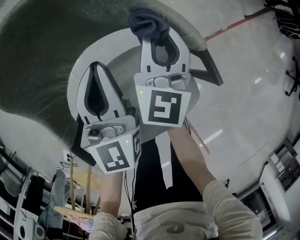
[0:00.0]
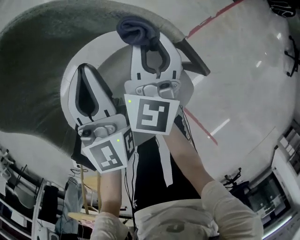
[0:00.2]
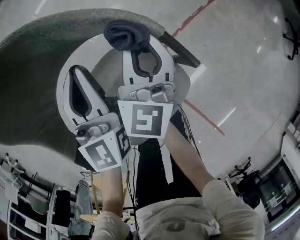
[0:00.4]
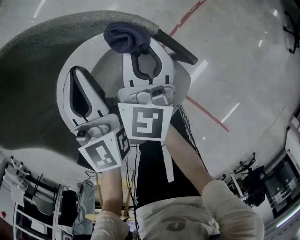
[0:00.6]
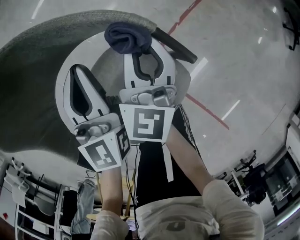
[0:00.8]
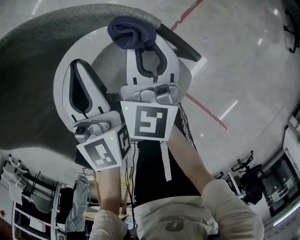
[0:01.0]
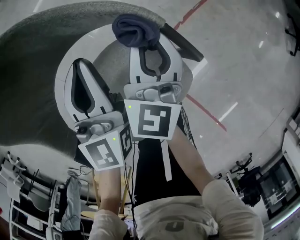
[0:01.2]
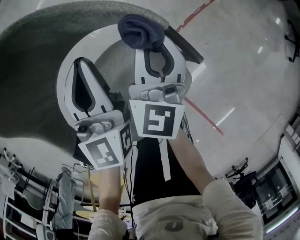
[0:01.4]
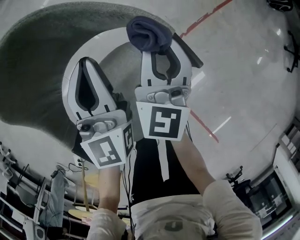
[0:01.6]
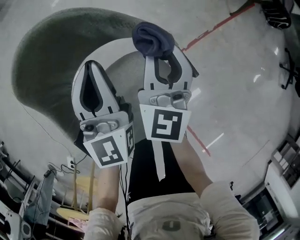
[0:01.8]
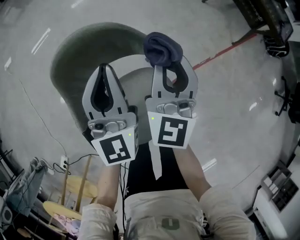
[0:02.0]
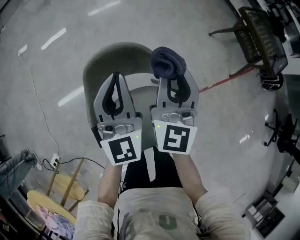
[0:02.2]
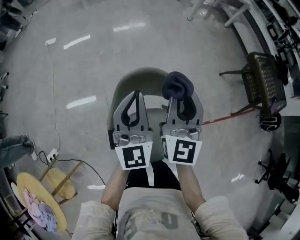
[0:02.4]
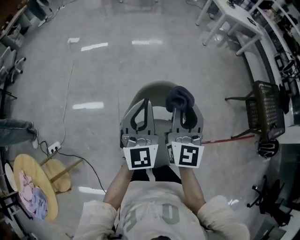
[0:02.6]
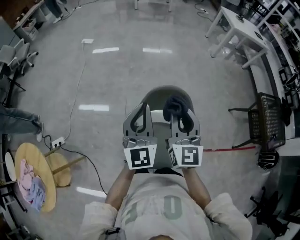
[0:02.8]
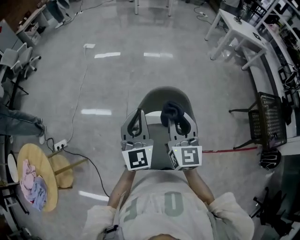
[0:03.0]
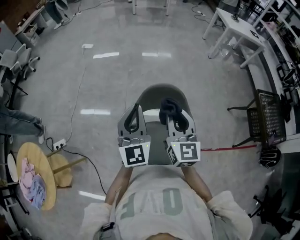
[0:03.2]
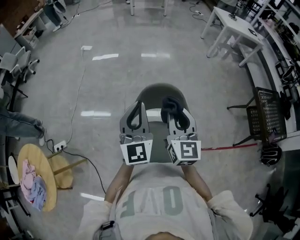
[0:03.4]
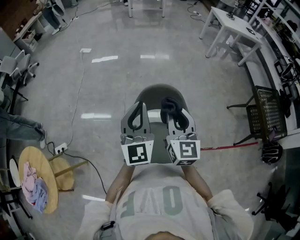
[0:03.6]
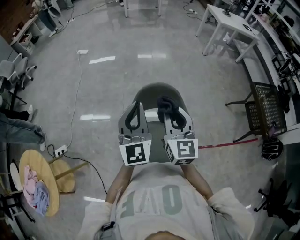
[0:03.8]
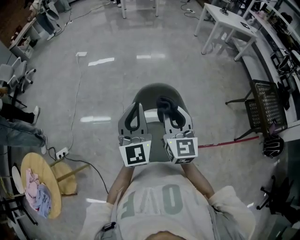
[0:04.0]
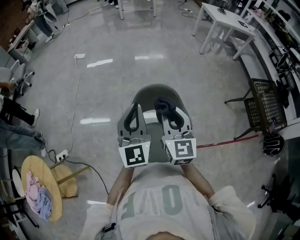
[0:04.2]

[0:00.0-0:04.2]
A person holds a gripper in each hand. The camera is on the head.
0:00.0 to 0:01.4: Both grippers travel together to the right, about 10 cm.
0:01.4 to 0:02.8: Both grippers travel together upward, some 40 cm. The left gripper turns by about 40 degrees. The right gripper turns by roughly 60 degrees.
0:02.8 to 0:04.2: The grippers make only small movements.

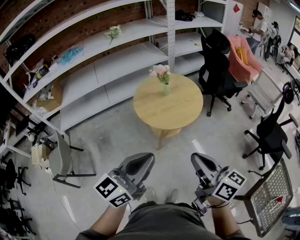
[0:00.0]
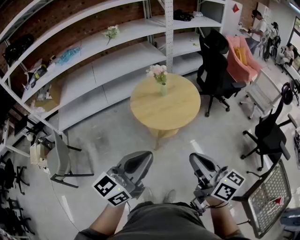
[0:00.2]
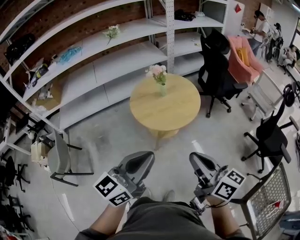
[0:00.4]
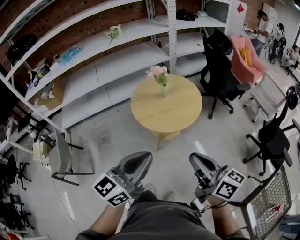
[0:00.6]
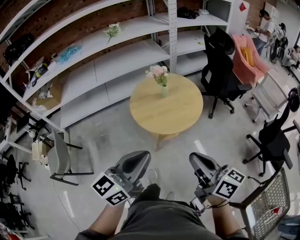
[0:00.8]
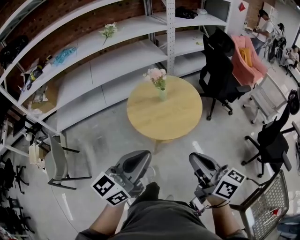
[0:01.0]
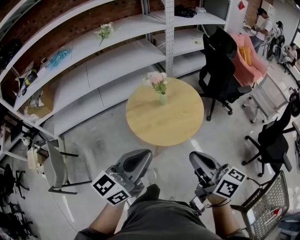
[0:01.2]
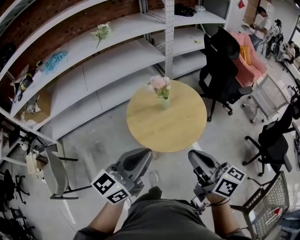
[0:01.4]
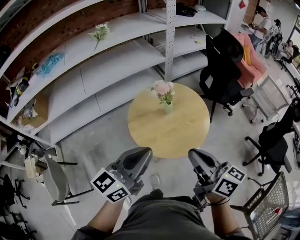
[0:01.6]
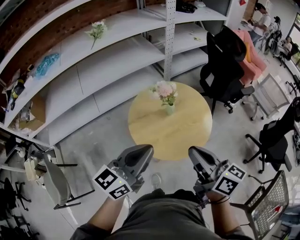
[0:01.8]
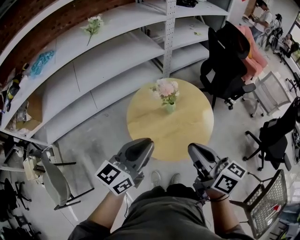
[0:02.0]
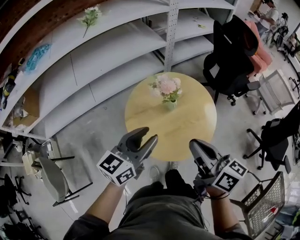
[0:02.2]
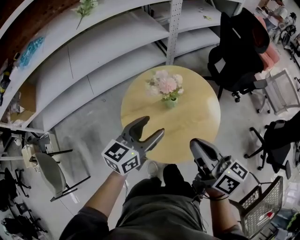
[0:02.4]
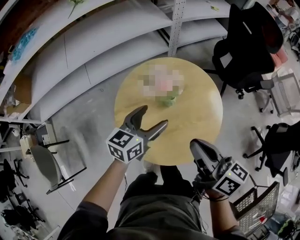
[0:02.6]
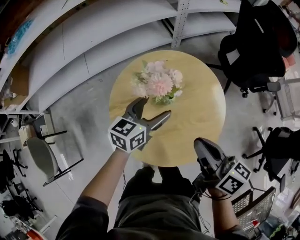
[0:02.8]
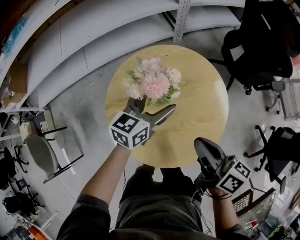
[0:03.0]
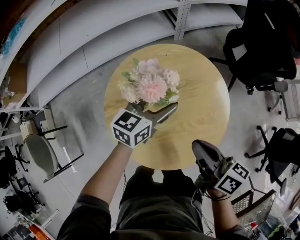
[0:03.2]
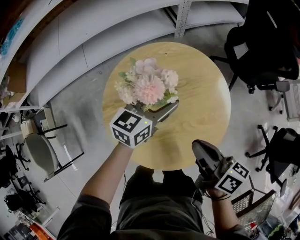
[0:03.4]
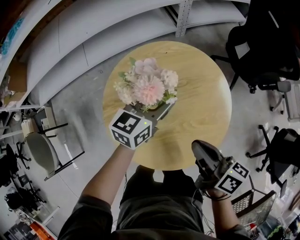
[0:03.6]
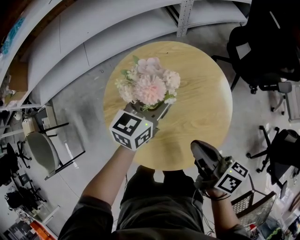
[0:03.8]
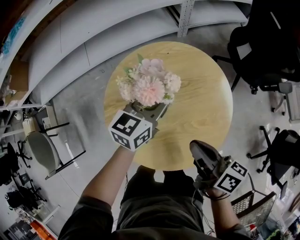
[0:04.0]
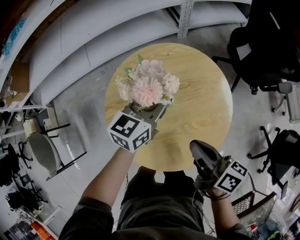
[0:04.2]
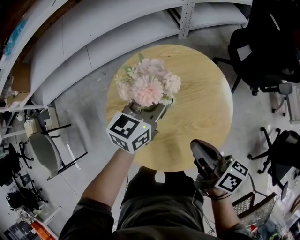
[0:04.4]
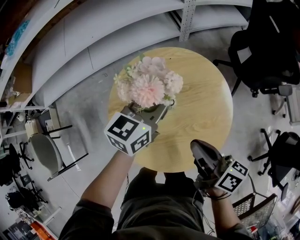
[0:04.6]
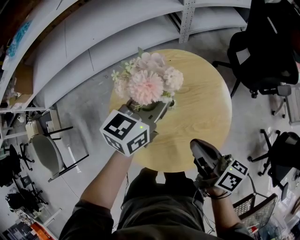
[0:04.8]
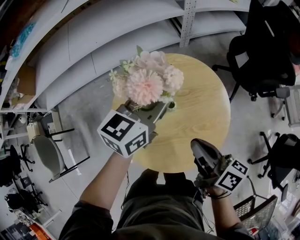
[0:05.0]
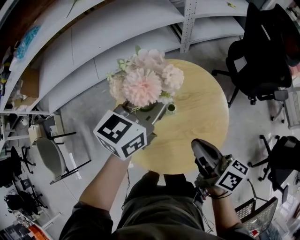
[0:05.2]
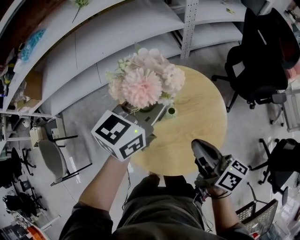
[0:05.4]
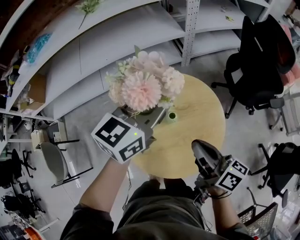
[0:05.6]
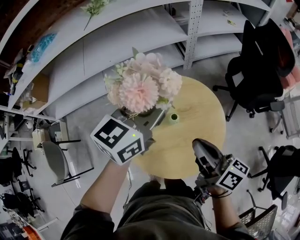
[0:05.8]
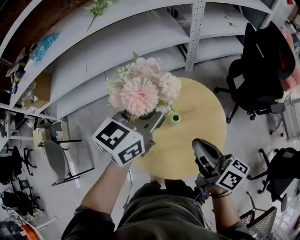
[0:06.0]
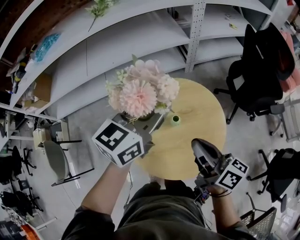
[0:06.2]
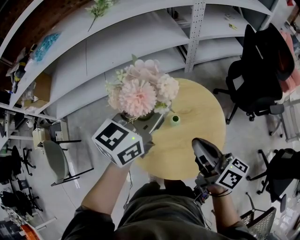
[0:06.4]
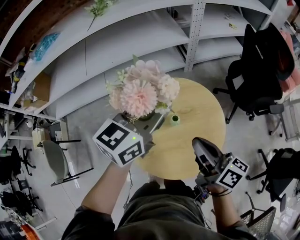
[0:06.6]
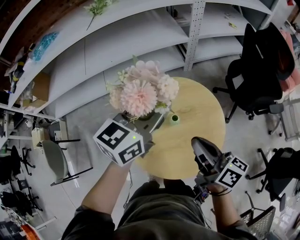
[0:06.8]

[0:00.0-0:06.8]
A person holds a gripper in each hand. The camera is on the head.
0:00.0 to 0:01.4: The grippers both shift forward by roughly 20 cm.
0:01.4 to 0:02.8: The left gripper shifts approximately 40 cm forward and downward, turns by about 20 degrees, and opens up. Meanwhile the right gripper shifts roughly 30 cm forward and downward.
0:02.8 to 0:04.0: The left gripper ends up about 5 cm from where it was, and closes. Meanwhile the right gripper goes approximately 5 cm downward.
0:04.0 to 0:05.4: The left gripper goes some 20 cm upward; the right gripper heads upward, covering about 10 cm.
0:05.4 to 0:06.8: The right gripper moves upward, some 5 cm. The left gripper moves approximately 5 cm.

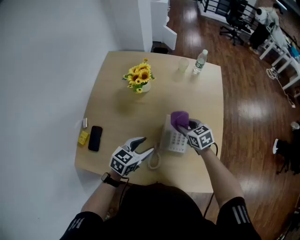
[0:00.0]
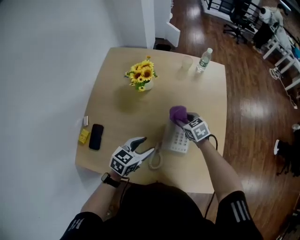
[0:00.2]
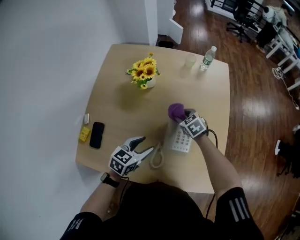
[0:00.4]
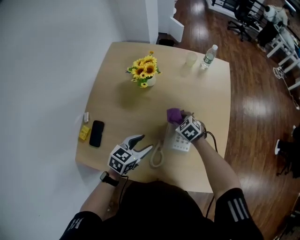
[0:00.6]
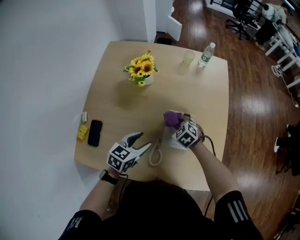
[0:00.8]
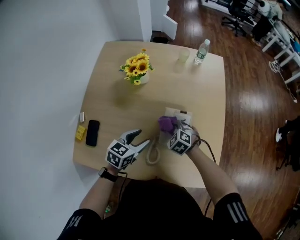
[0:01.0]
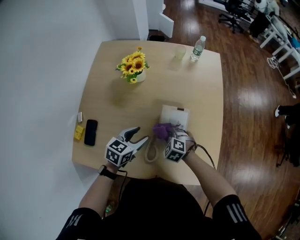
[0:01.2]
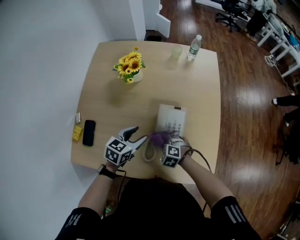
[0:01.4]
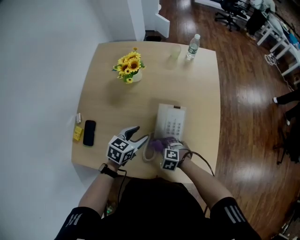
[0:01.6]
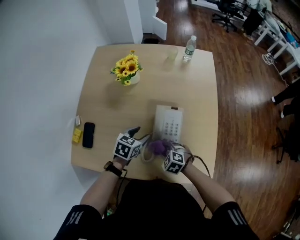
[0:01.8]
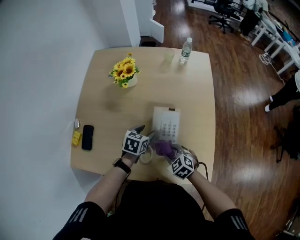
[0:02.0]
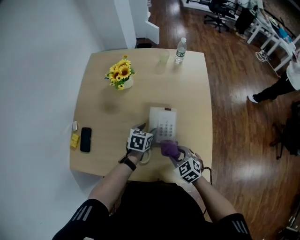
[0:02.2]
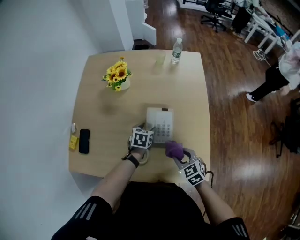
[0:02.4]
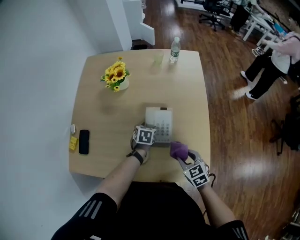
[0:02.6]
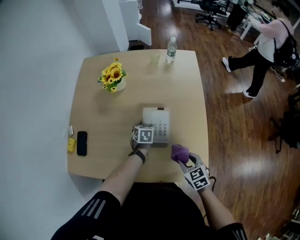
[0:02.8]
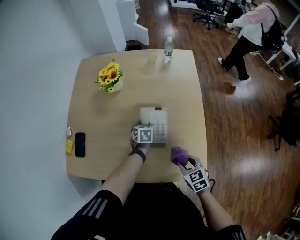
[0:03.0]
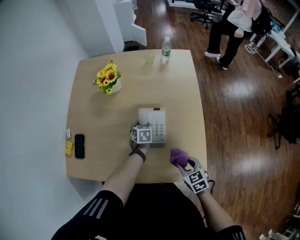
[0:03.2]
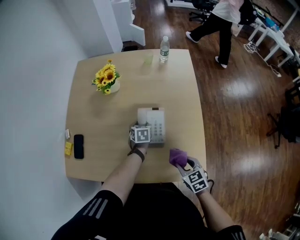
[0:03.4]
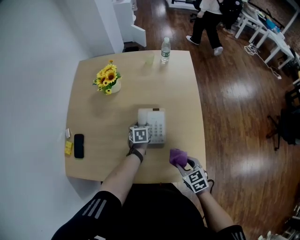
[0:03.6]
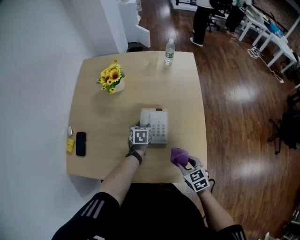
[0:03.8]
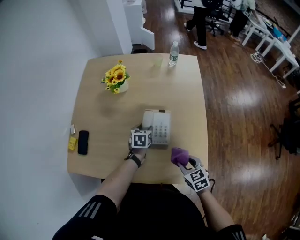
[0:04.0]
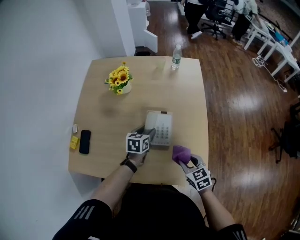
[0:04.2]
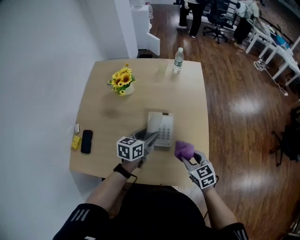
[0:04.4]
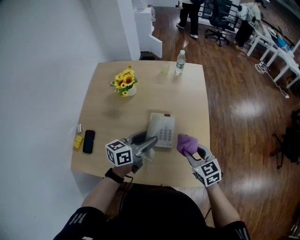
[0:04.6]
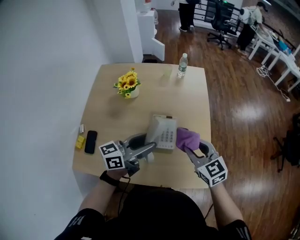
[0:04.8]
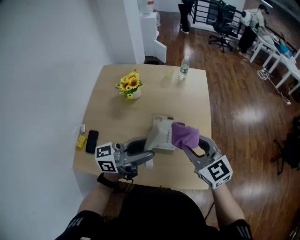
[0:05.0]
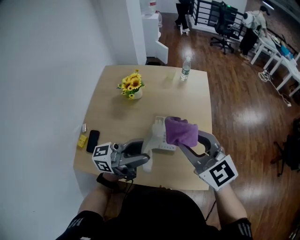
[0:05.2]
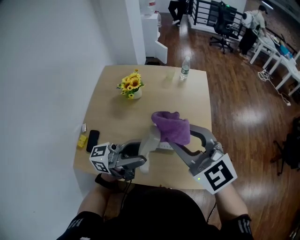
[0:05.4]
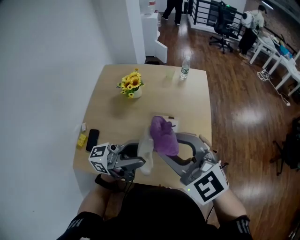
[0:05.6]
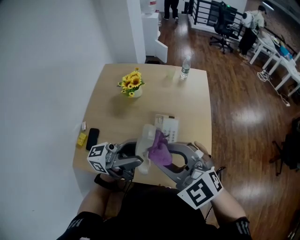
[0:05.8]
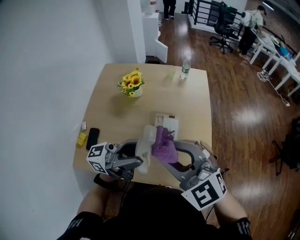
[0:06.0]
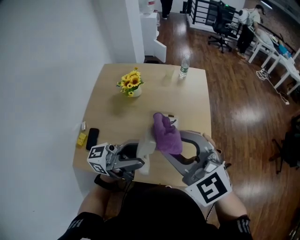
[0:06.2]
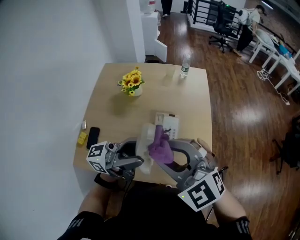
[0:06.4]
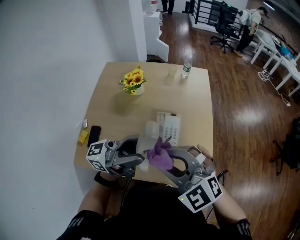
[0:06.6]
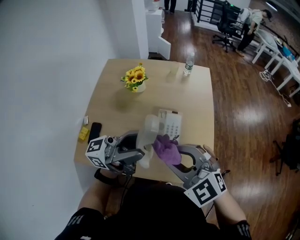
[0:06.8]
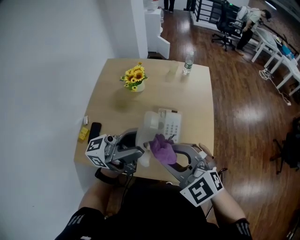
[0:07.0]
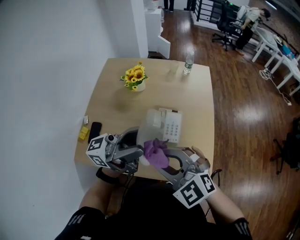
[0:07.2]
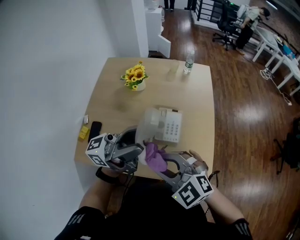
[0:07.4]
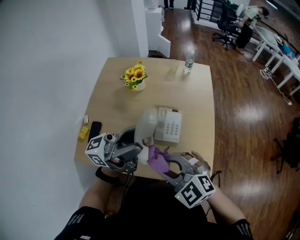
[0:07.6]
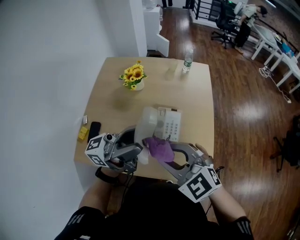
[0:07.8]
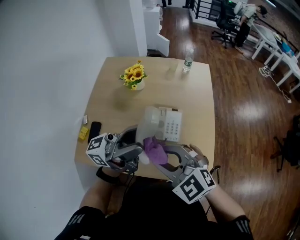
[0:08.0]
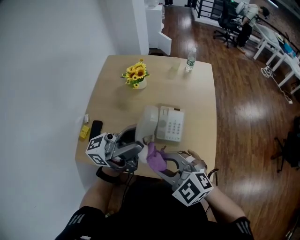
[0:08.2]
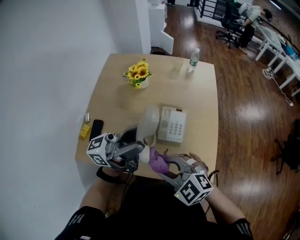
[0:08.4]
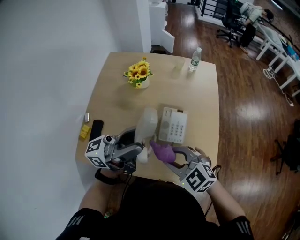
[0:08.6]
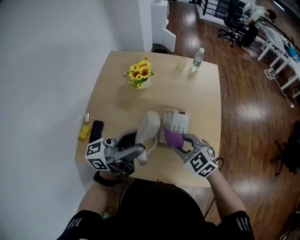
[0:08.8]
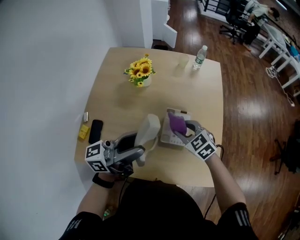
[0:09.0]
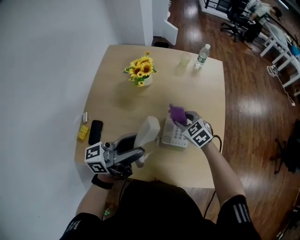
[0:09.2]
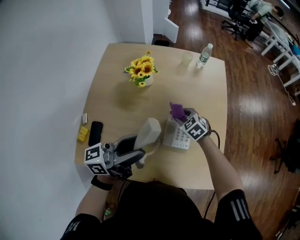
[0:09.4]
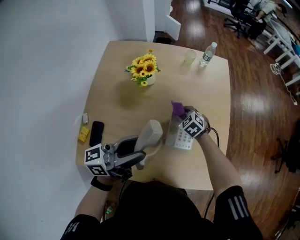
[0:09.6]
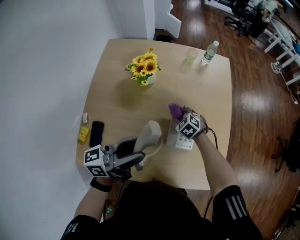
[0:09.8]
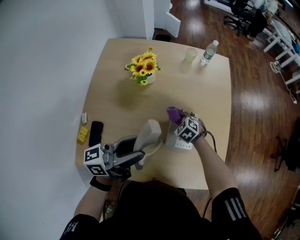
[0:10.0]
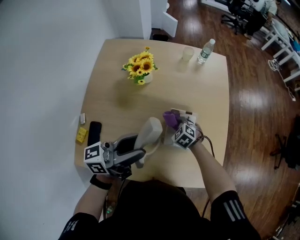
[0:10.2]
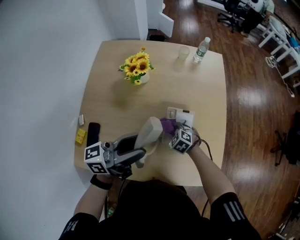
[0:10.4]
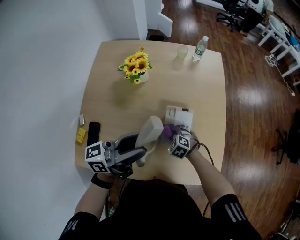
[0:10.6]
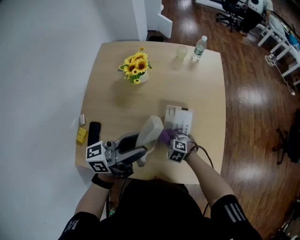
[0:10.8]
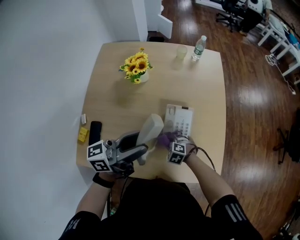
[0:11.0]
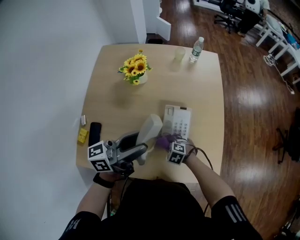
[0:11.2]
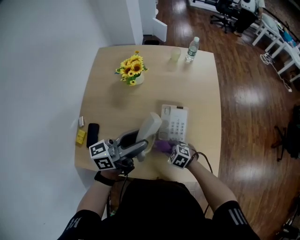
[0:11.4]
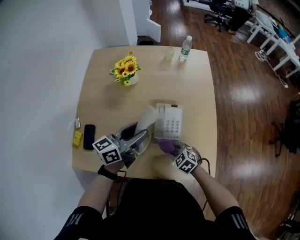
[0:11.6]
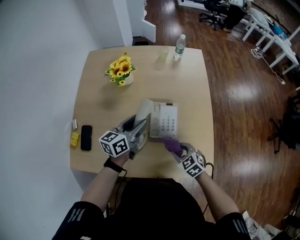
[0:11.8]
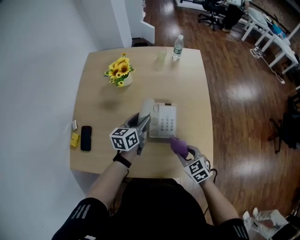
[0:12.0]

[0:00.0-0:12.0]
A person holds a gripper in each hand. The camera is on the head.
0:00.0 to 0:01.6: The right gripper goes roughly 25 cm backward and downward, and rotates around the line of its fingers by about 40 degrees, counterclockwise from behind.
0:01.6 to 0:03.0: The left gripper is displaced downward, to the right and forward by some 15 cm, and swivels some 30 degrees, while the right gripper heads to the right, upward and backward, covering some 20 cm, and twists approximately 50 degrees clockwise, seen from behind.
0:03.0 to 0:04.4: The left gripper shifts roughly 15 cm upward and backward, and turns by about 40 degrees. Meanwhile the right gripper is displaced upward by approximately 5 cm.
0:04.4 to 0:06.0: Both grippers move upward, approximately 30 cm. The right gripper twists about 40 degrees counterclockwise, seen from behind; the left gripper points its fingers some 60 degrees further upward.
0:06.0 to 0:07.6: The right gripper travels downward by about 10 cm.
0:07.6 to 0:09.0: The right gripper changes place by roughly 25 cm, and changes its angle by some 20 degrees; the left gripper moves downward, about 10 cm.
0:09.0 to 0:10.4: The left gripper moves downward, some 5 cm. Meanwhile the right gripper heads downward, covering some 20 cm, and turns by approximately 20 degrees.
0:10.4 to 0:12.0: The right gripper moves about 25 cm, and swivels some 30 degrees. The left gripper moves downward, some 15 cm, and tilts its fingers approximately 40 degrees downward.
